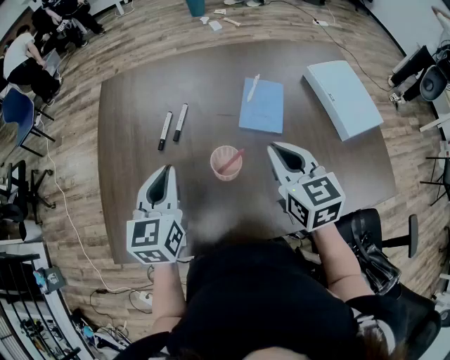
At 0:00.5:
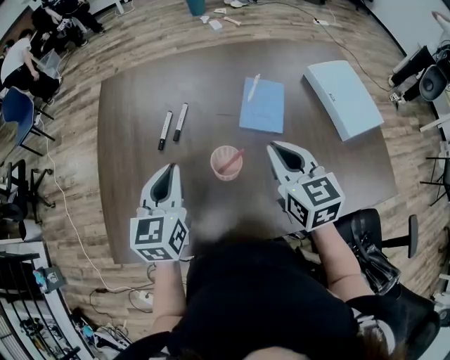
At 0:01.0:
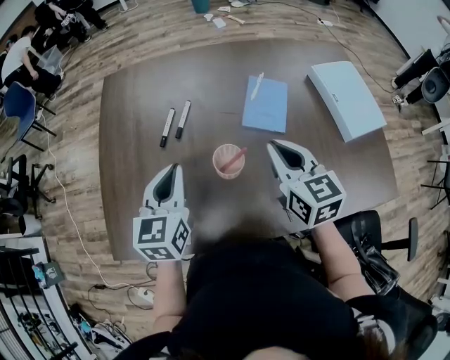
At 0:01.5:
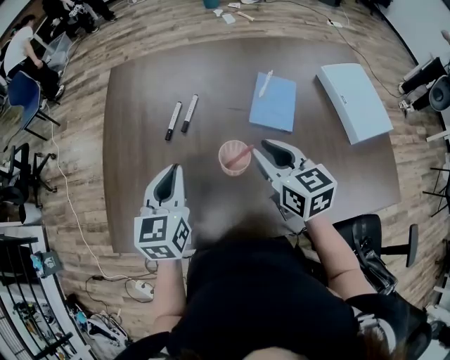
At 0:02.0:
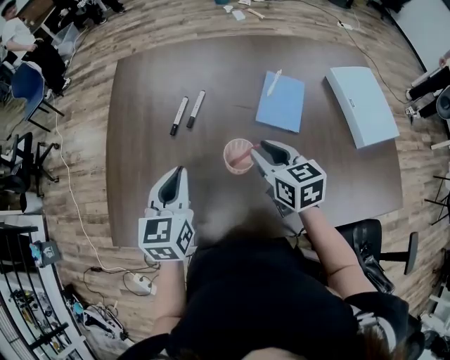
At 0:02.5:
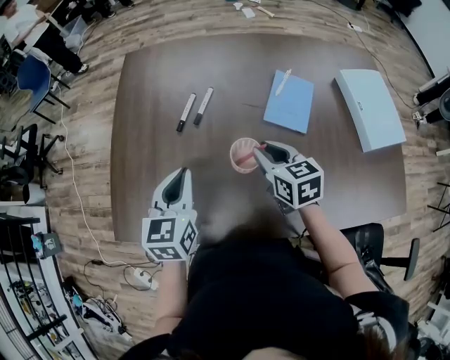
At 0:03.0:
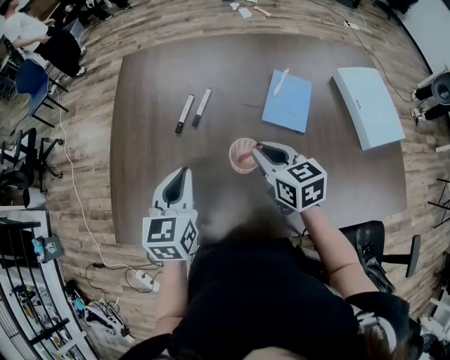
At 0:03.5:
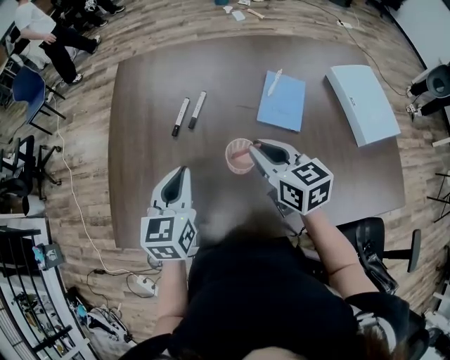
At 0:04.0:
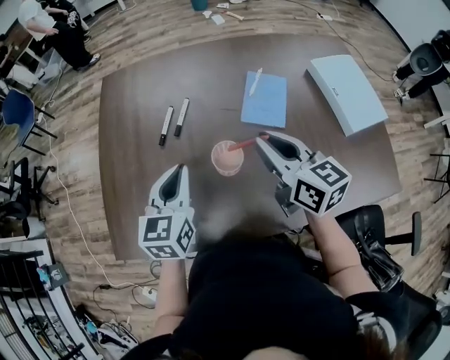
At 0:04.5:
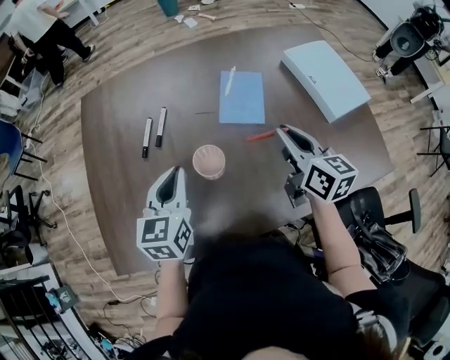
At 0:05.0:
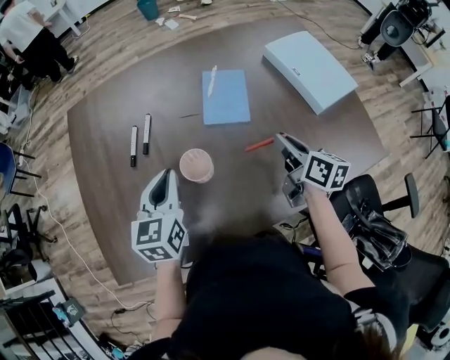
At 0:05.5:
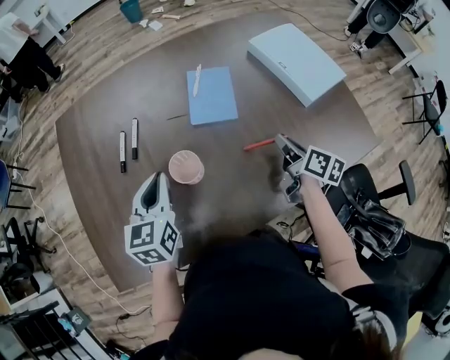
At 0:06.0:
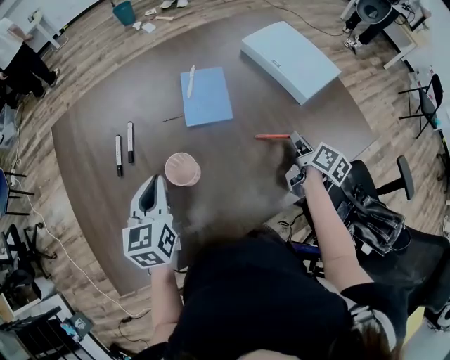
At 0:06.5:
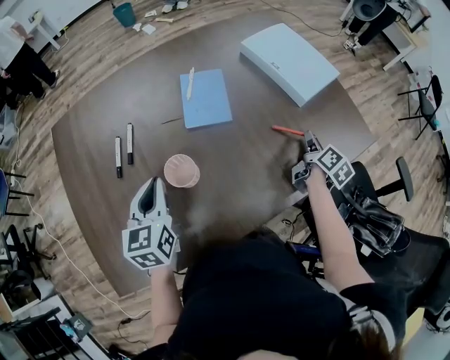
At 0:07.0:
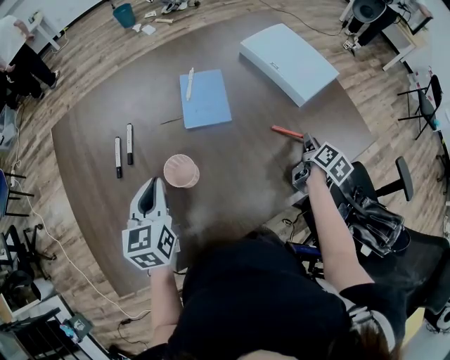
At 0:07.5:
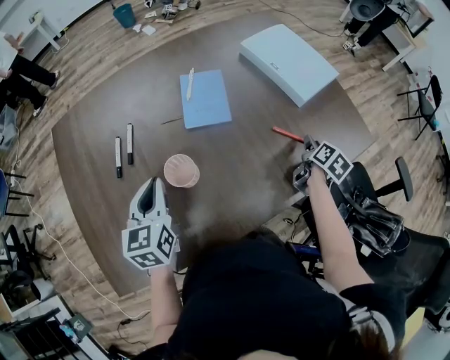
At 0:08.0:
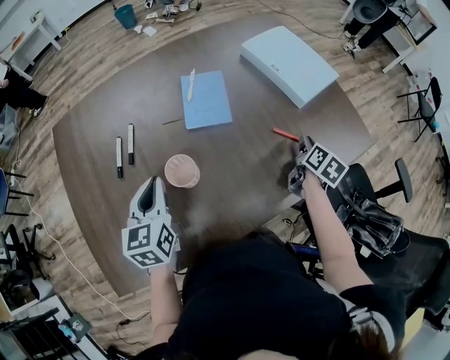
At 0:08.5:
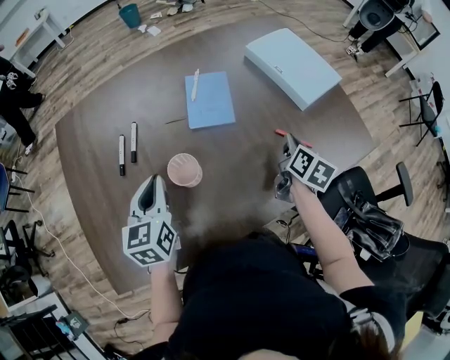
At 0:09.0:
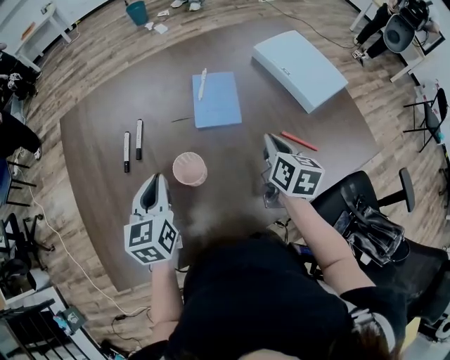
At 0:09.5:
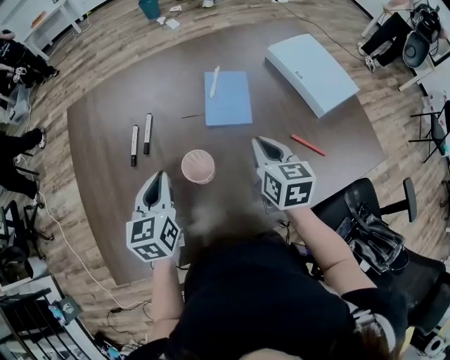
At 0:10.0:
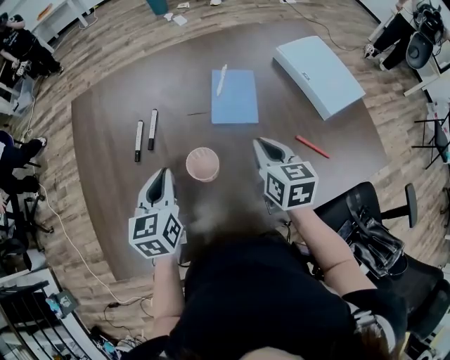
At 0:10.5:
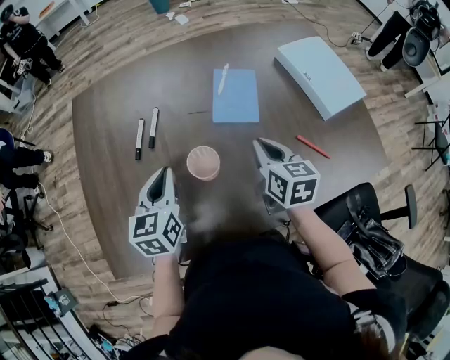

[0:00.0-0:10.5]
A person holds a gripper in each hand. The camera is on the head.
0:00.0 to 0:02.0: The right gripper goes about 10 cm downward, and opens up.
0:02.0 to 0:04.0: The right gripper heads upward, covering some 10 cm.
0:04.0 to 0:06.5: The right gripper changes place by about 40 cm, and turns by some 70 degrees. Meanwhile the left gripper shifts by some 5 cm.
0:06.5 to 0:08.5: The right gripper moves to the left, about 10 cm, turns by roughly 20 degrees, and closes up.
0:08.5 to 0:10.5: The right gripper moves to the left, roughly 20 cm, and changes its angle by about 40 degrees.

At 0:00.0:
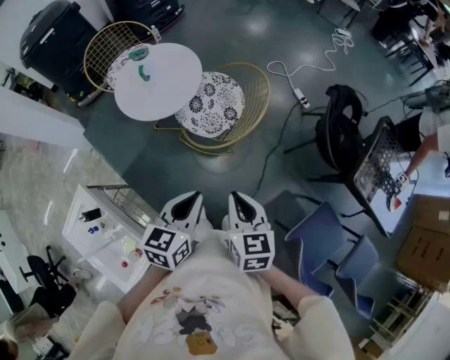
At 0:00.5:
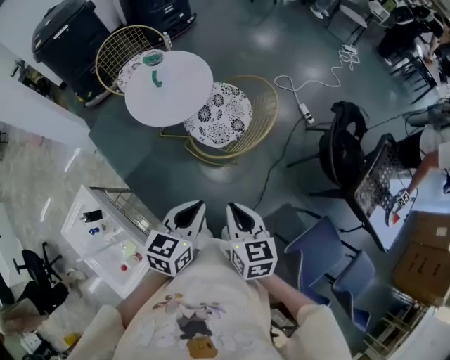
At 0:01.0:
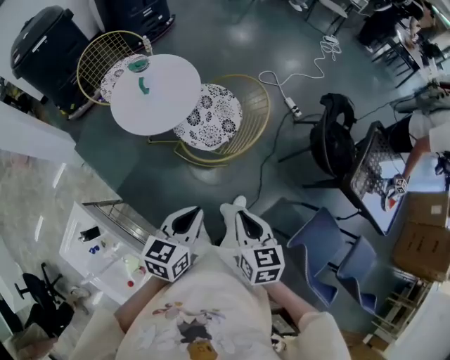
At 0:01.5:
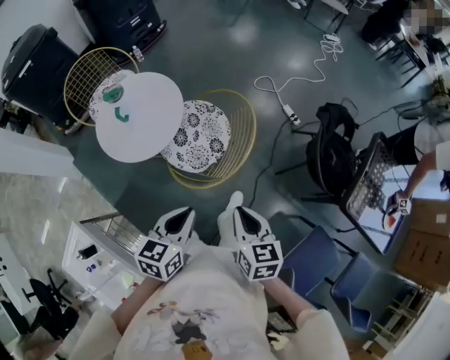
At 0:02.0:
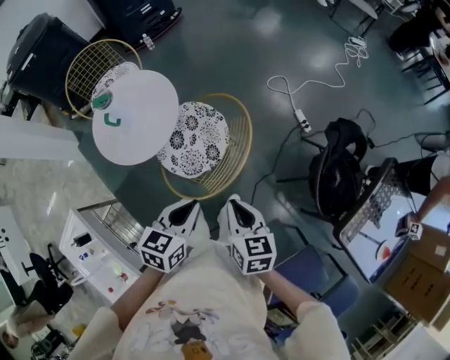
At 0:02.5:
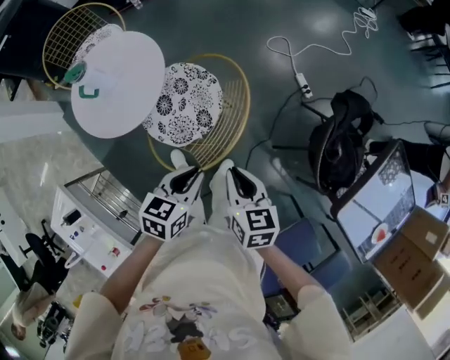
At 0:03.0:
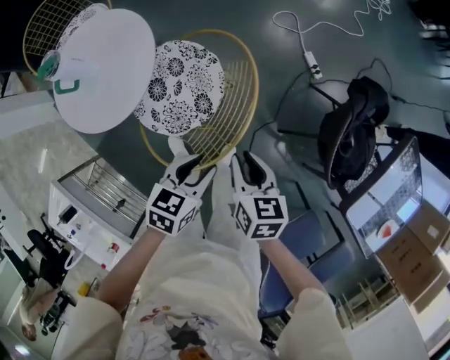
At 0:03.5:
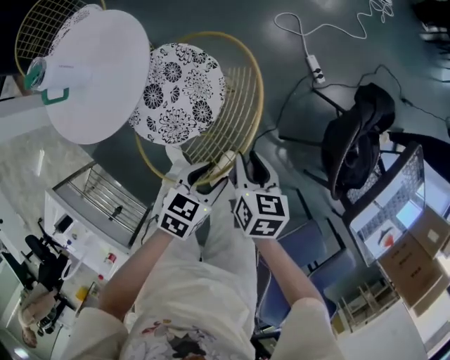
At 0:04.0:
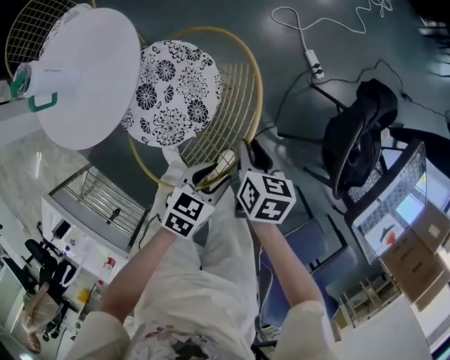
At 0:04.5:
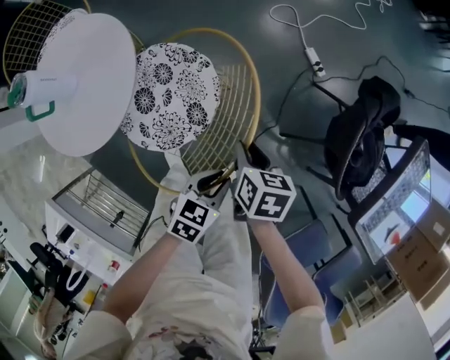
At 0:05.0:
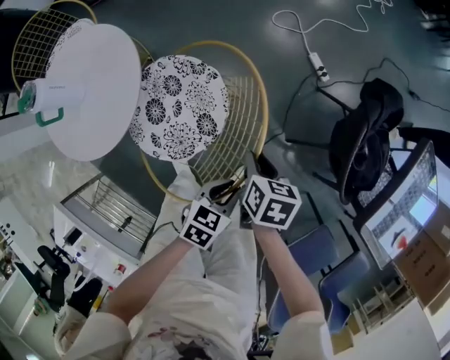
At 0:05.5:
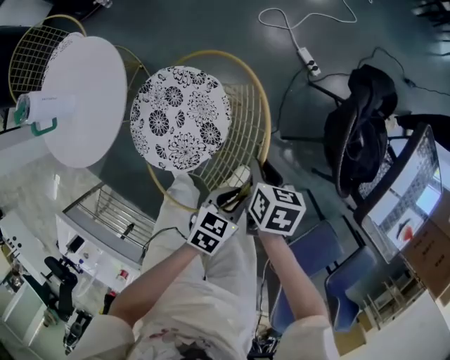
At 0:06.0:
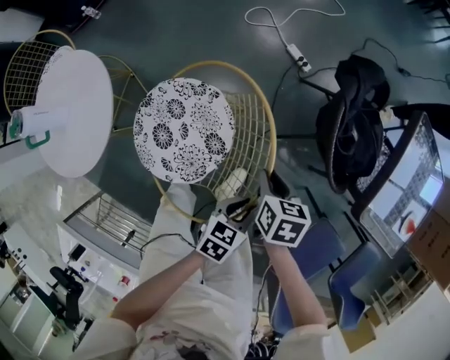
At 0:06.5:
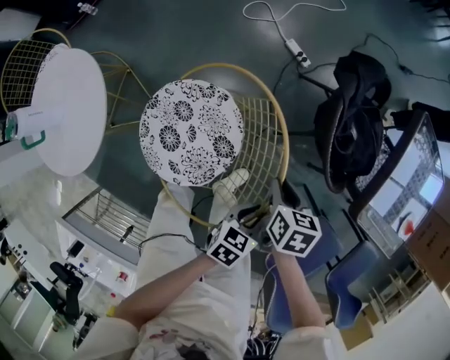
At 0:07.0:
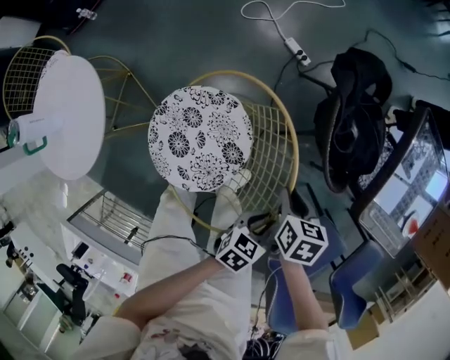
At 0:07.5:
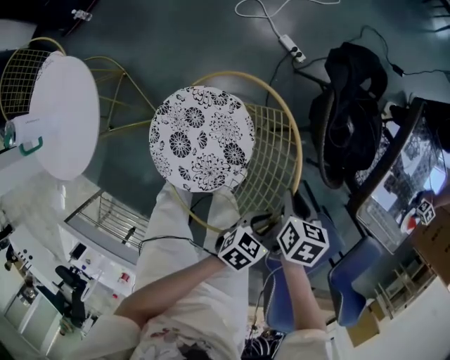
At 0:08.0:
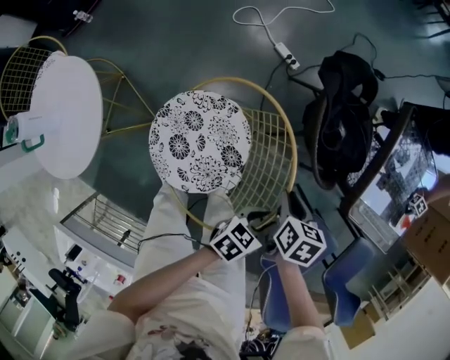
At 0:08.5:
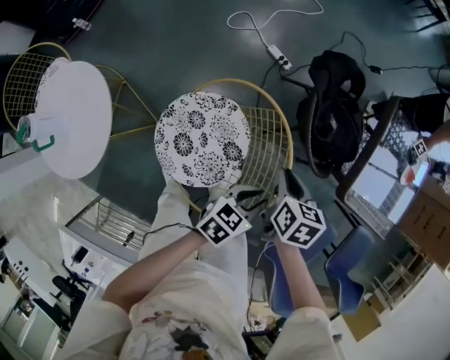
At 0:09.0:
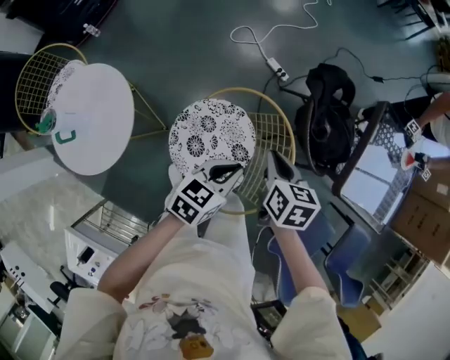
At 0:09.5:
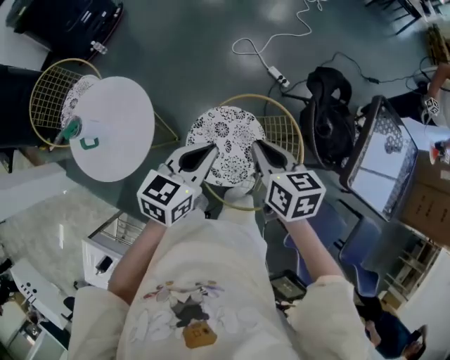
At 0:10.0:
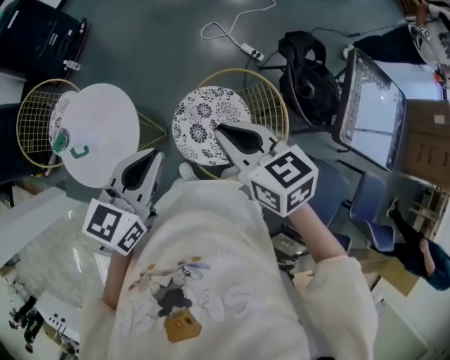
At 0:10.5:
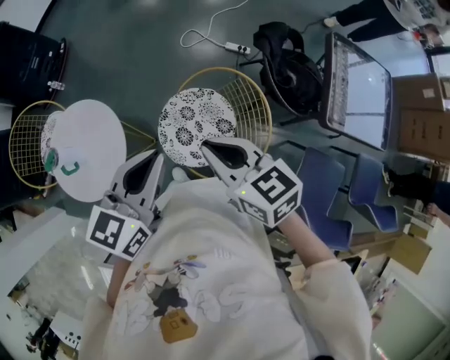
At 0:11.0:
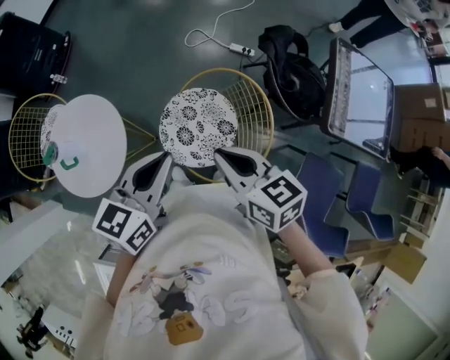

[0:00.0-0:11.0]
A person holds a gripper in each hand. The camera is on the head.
0:00.0 to 0:02.0: The grippers both shift forward by about 30 cm.
0:02.0 to 0:03.5: The right gripper shifts some 25 cm downward and forward, and opens, while the left gripper shifts some 25 cm downward, and opens.
0:03.5 to 0:05.5: The two grippers go approximately 10 cm to the right and downward. The left gripper closes its fingers.
0:05.5 to 0:07.5: The two grippers go about 20 cm to the right.
0:07.5 to 0:09.0: The right gripper heads upward and to the left, covering some 25 cm, while the left gripper is displaced to the left and upward by roughly 30 cm.
0:09.0 to 0:11.0: The left gripper moves upward and to the left, some 25 cm. The right gripper is displaced upward, backward and to the left by roughly 25 cm, and swivels about 30 degrees.

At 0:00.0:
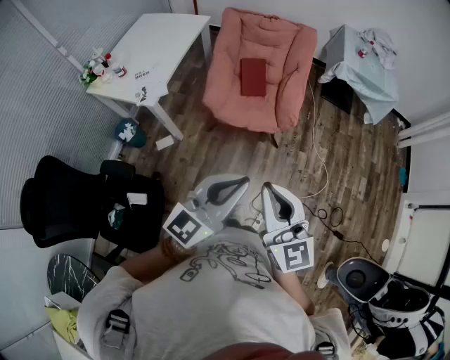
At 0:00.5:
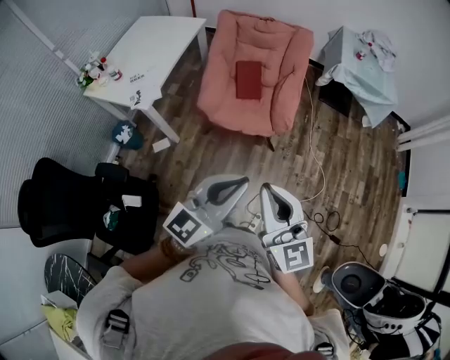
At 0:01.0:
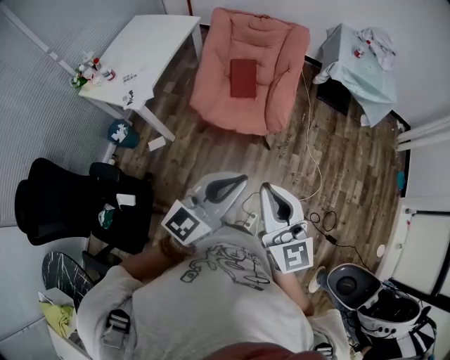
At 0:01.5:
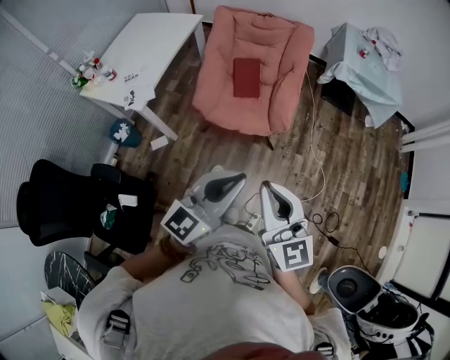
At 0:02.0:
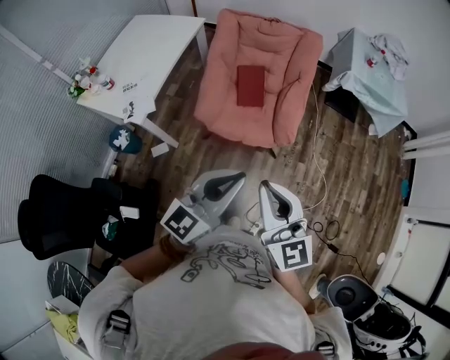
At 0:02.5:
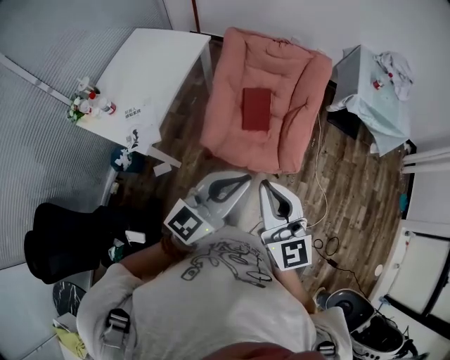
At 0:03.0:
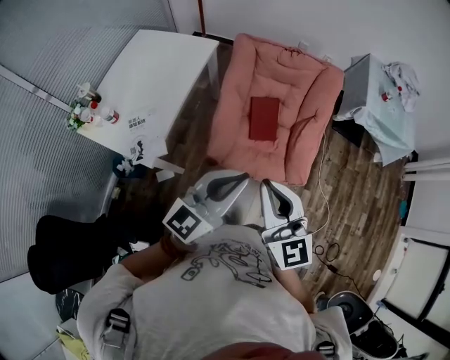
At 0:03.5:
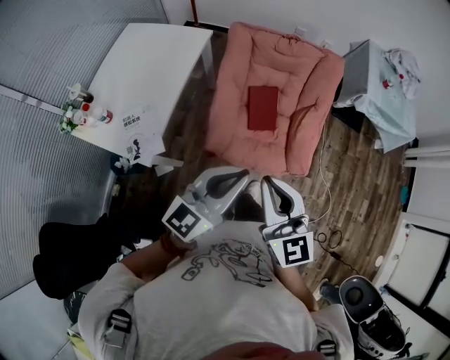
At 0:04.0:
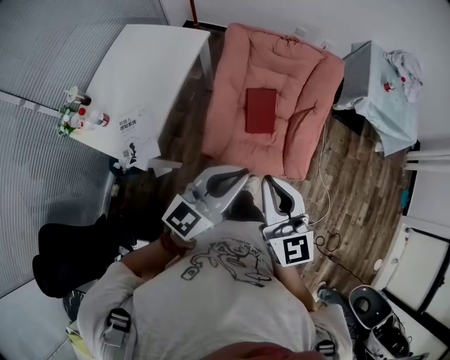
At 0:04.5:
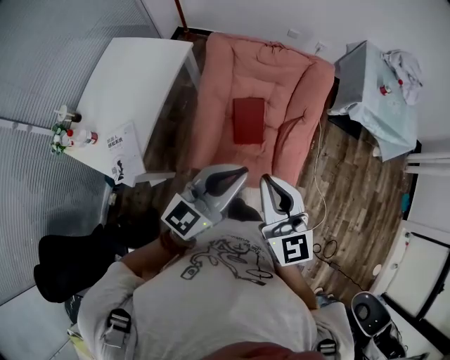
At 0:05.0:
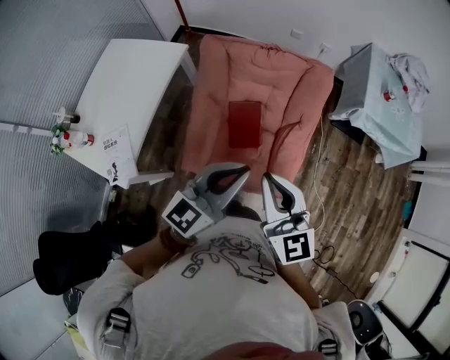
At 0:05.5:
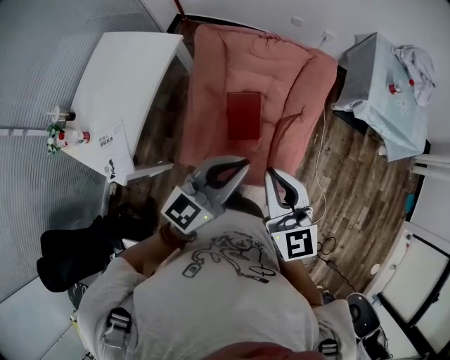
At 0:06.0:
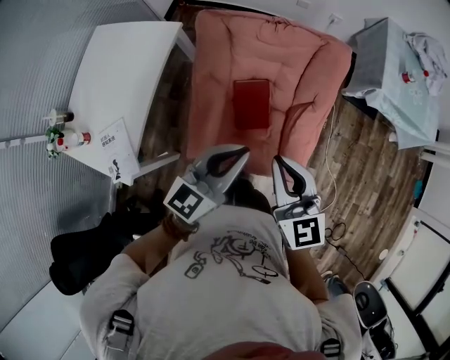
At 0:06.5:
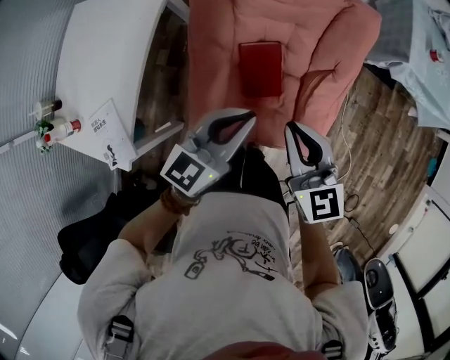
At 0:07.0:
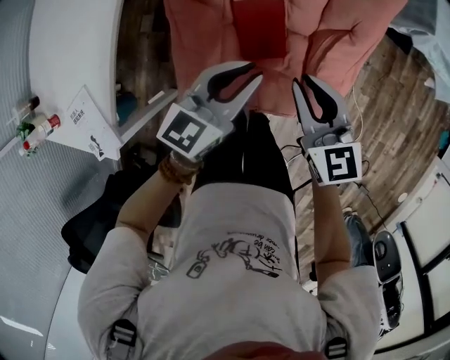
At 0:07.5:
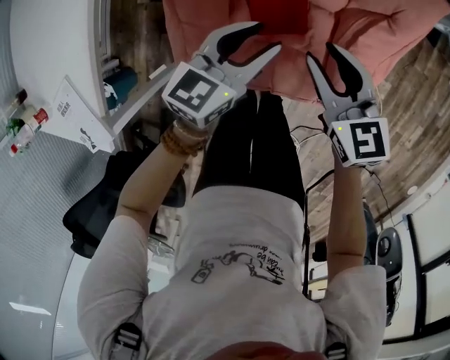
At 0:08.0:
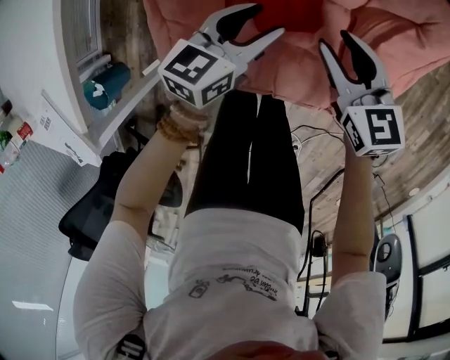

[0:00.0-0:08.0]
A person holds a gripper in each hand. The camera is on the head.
0:00.0 to 0:02.0: Both grippers move forward, some 20 cm.
0:02.0 to 0:04.0: The grippers both shift forward and to the left by about 30 cm.
0:04.0 to 0:06.0: The right gripper goes approximately 25 cm forward and to the right. Meanwhile the left gripper moves forward, about 25 cm.
0:06.0 to 0:08.0: Both grippers travel together downward, some 50 cm. The right gripper changes its angle by roughly 30 degrees, and opens. Meanwhile the left gripper turns by about 20 degrees, and opens up.
